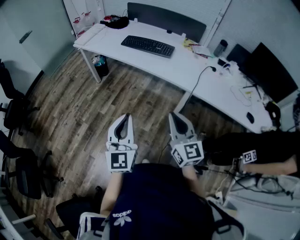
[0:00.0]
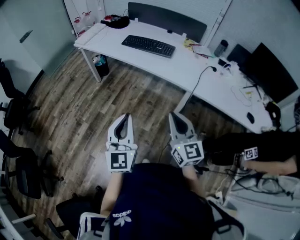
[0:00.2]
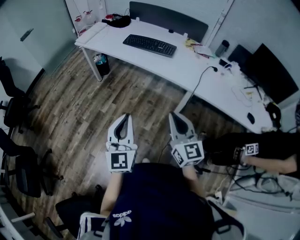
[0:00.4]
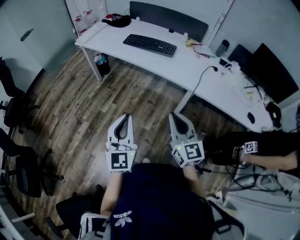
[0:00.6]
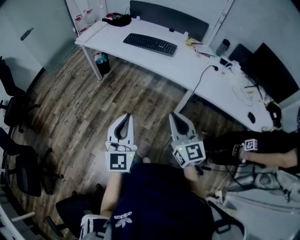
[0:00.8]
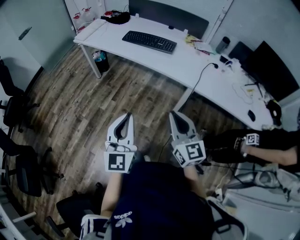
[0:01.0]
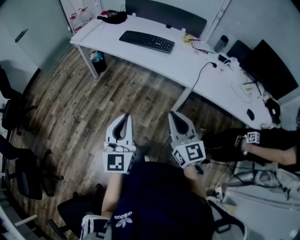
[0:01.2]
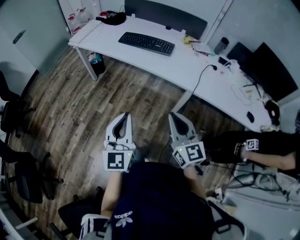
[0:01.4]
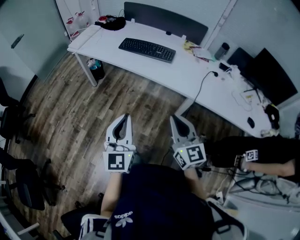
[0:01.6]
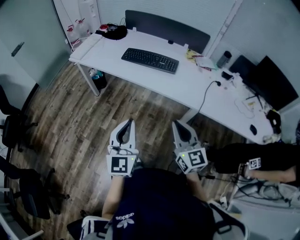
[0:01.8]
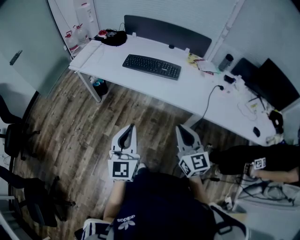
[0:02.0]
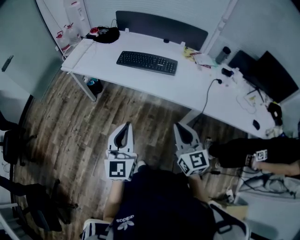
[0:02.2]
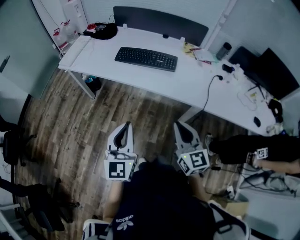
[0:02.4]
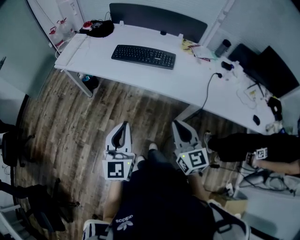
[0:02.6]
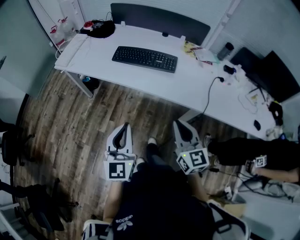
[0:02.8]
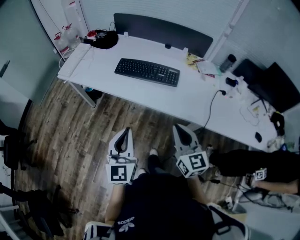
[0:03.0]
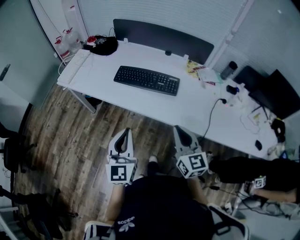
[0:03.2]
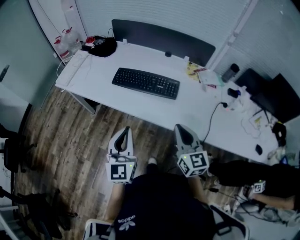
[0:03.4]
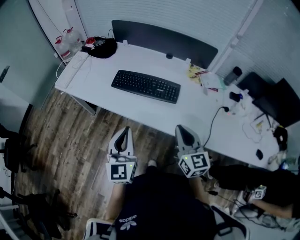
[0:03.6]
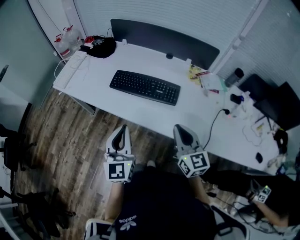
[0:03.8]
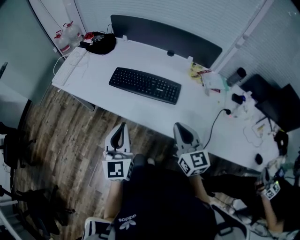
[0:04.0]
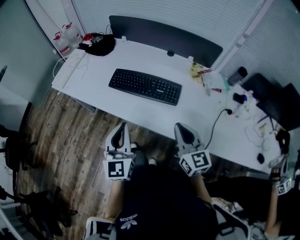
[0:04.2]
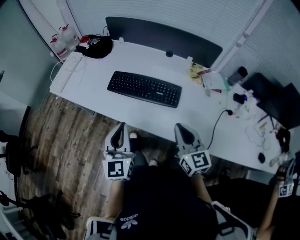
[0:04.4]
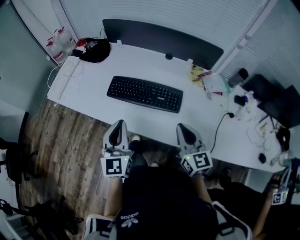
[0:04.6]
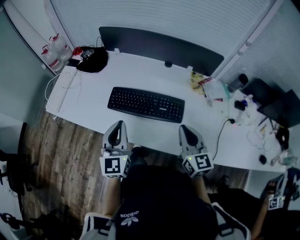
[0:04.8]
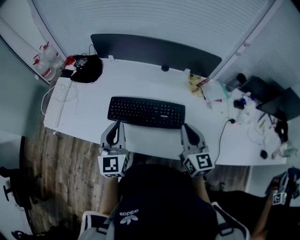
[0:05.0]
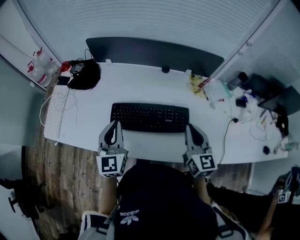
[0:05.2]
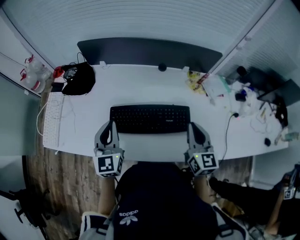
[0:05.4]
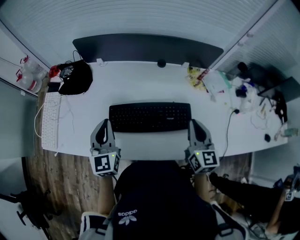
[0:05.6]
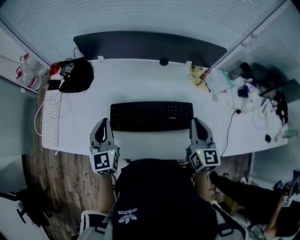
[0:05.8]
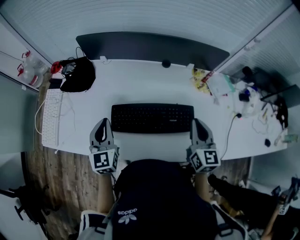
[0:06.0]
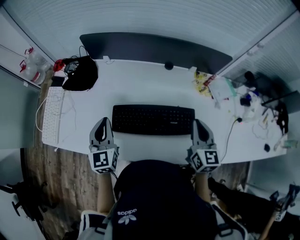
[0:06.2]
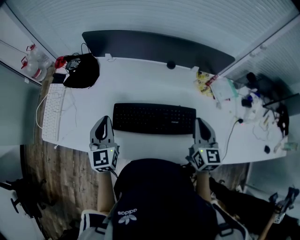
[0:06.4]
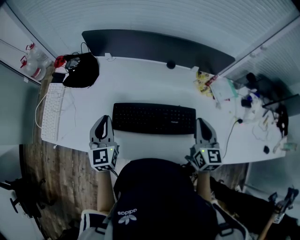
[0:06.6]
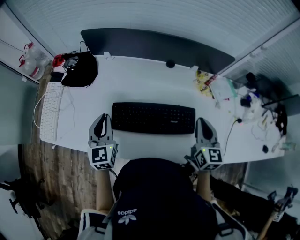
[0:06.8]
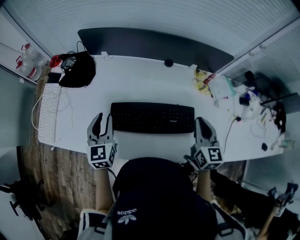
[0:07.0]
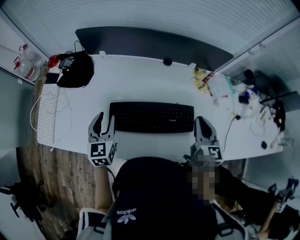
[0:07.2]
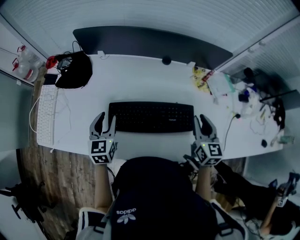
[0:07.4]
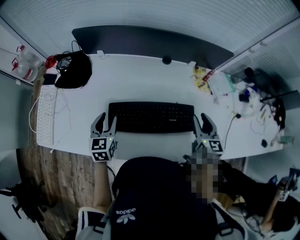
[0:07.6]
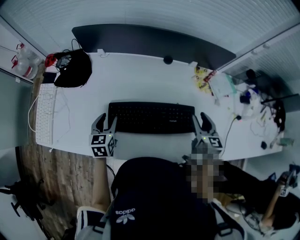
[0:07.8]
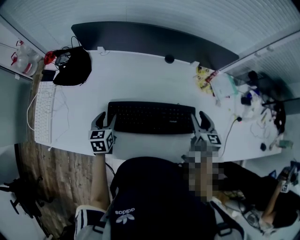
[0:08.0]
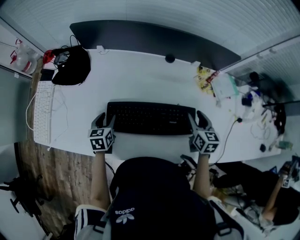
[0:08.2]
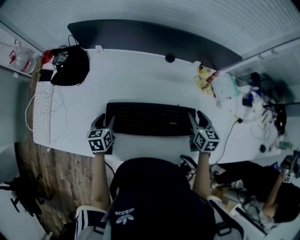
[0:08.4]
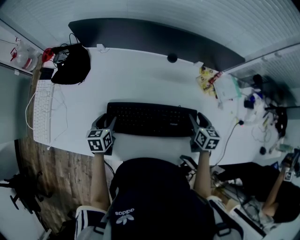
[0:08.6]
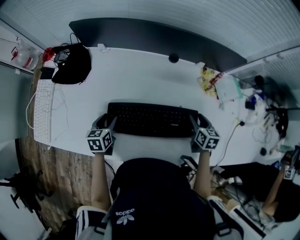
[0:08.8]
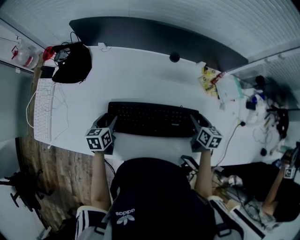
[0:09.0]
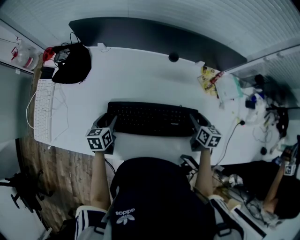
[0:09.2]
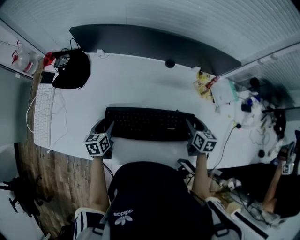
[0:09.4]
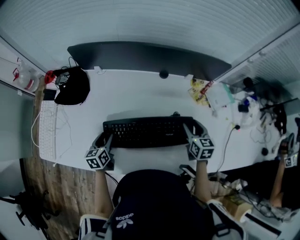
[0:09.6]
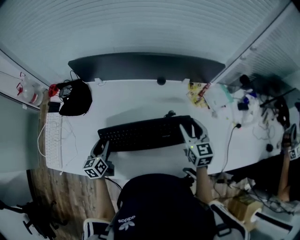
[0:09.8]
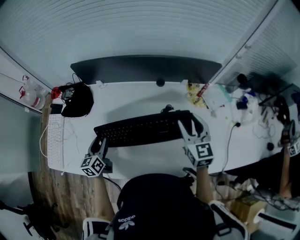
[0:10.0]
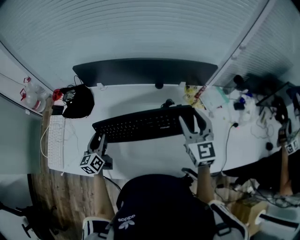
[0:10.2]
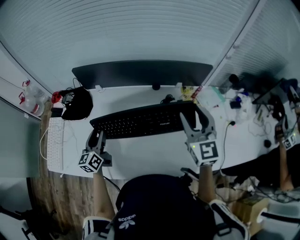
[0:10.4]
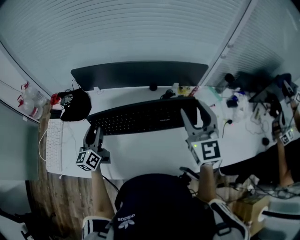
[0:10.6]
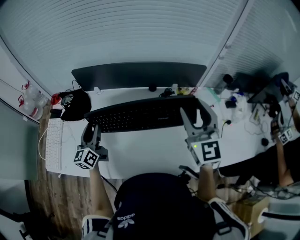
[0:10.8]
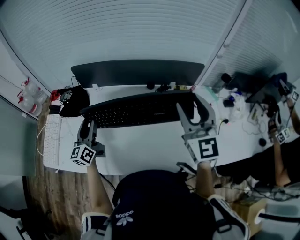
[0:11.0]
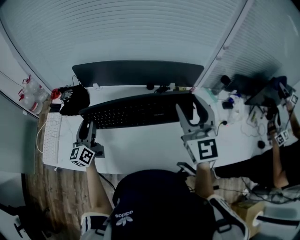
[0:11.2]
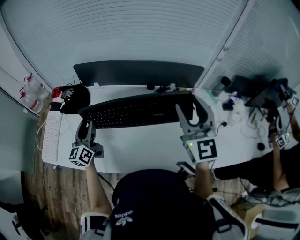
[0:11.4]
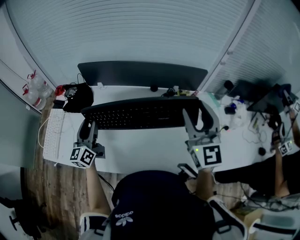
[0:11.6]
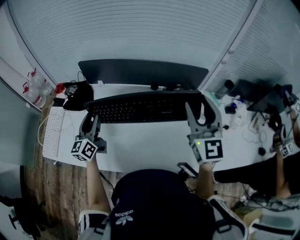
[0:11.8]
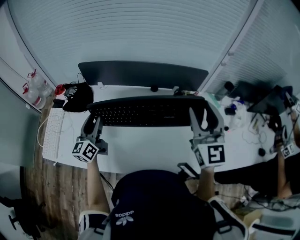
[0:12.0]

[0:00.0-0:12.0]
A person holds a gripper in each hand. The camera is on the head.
0:00.0 to 0:01.6: The two grippers go about 10 cm forward.
0:01.6 to 0:03.0: The grippers both shift forward by roughly 20 cm.
0:03.0 to 0:04.4: The two grippers go some 20 cm forward.
0:04.4 to 0:06.0: The left gripper heads forward and to the left, covering some 35 cm. The right gripper travels forward by some 20 cm, and swivels approximately 30 degrees.
0:06.0 to 0:07.6: The left gripper moves downward, some 10 cm, swivels some 20 degrees, and opens. Meanwhile the right gripper heads downward, covering about 5 cm, and opens up.
0:07.6 to 0:09.0: Both grippers move downward, roughly 10 cm. The right gripper turns by some 30 degrees. Meanwhile the left gripper turns by about 30 degrees.
0:09.0 to 0:10.4: The left gripper heads upward, covering roughly 15 cm, and tips its fingers upward by roughly 40 degrees, while the right gripper is displaced upward by roughly 30 cm, and tips its fingers upward by some 40 degrees.
0:10.4 to 0:12.0: Both grippers travel together upward, approximately 10 cm.

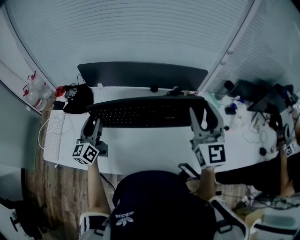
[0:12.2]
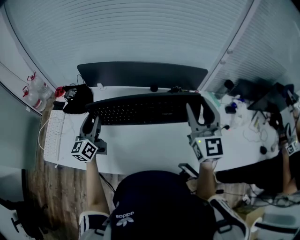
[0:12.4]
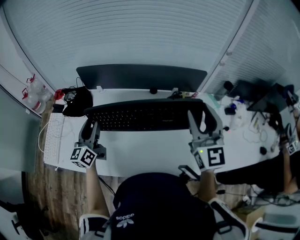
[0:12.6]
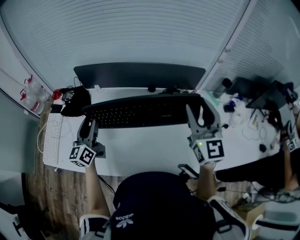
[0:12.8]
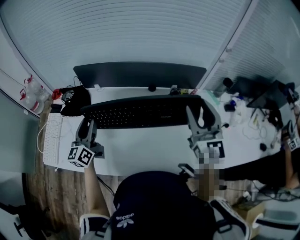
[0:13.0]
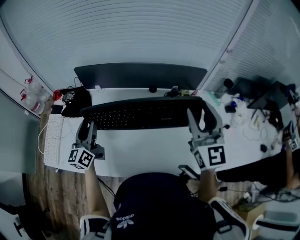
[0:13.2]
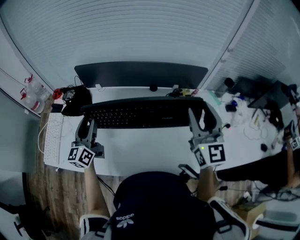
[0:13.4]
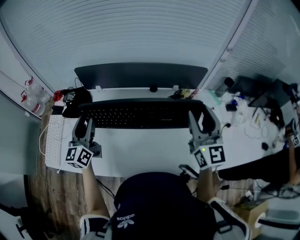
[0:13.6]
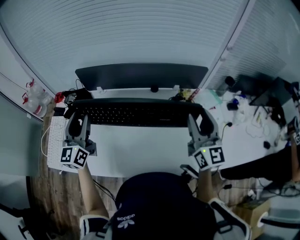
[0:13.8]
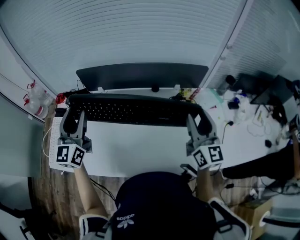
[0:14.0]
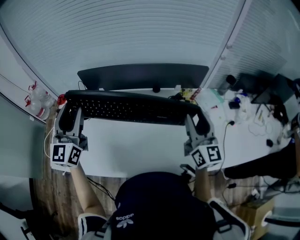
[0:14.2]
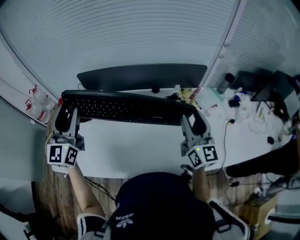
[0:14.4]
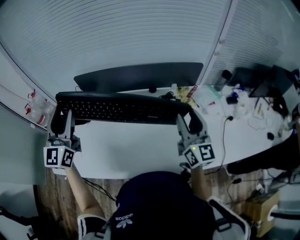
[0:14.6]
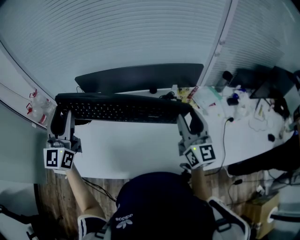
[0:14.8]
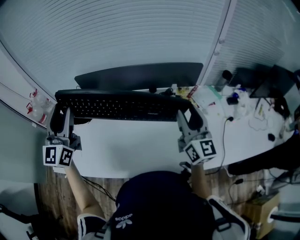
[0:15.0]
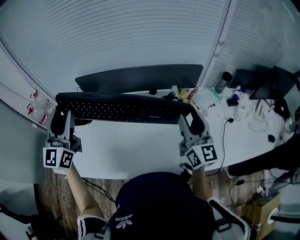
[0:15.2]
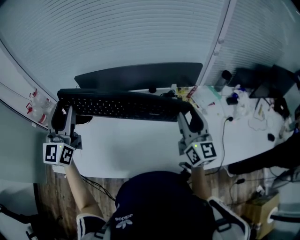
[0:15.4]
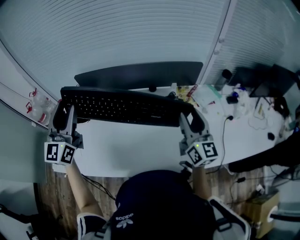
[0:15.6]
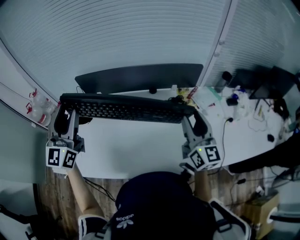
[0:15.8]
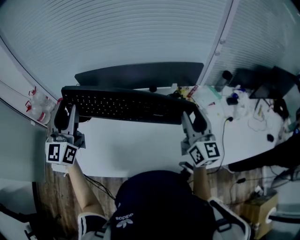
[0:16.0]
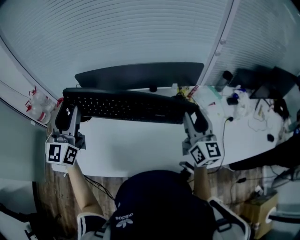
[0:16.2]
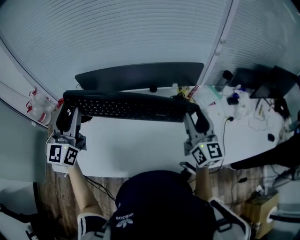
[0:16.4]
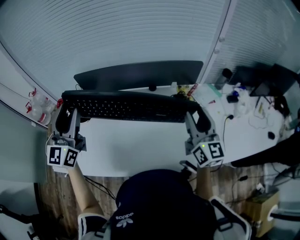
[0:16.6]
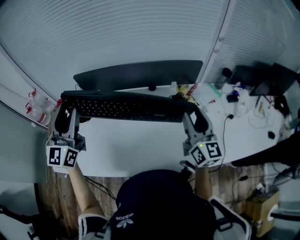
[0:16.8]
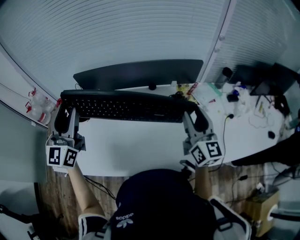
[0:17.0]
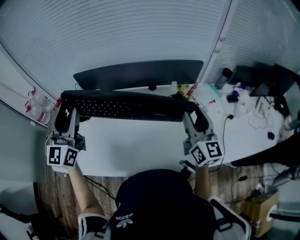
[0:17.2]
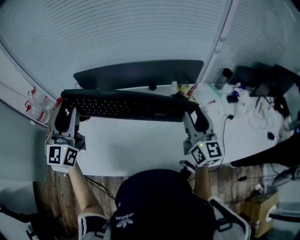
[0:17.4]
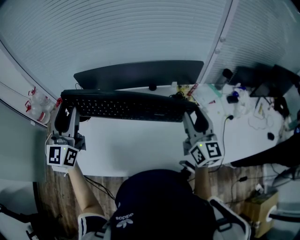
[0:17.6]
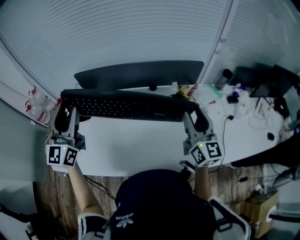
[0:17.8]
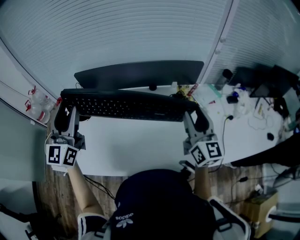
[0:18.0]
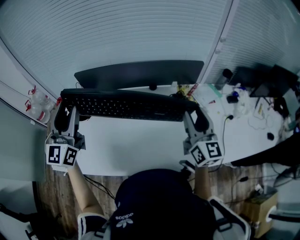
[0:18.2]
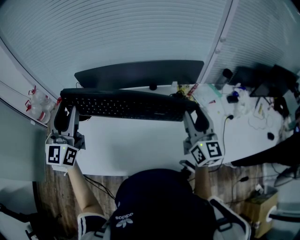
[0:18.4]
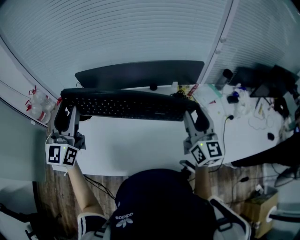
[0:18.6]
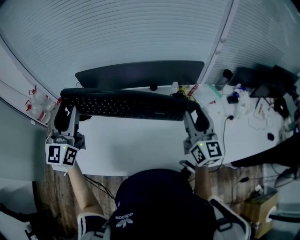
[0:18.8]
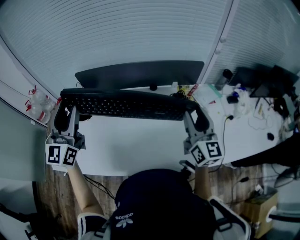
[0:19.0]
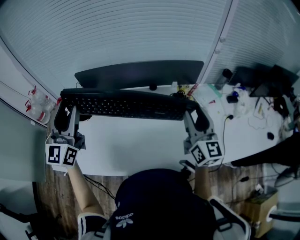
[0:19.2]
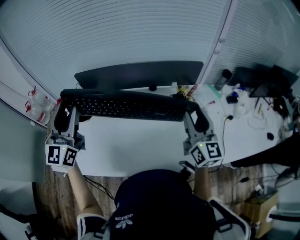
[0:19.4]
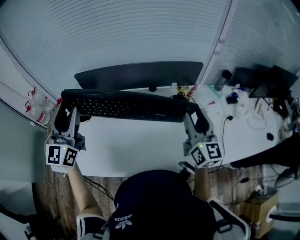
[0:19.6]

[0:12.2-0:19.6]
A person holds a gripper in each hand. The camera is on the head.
0:12.2 to 0:13.6: The left gripper ends up approximately 5 cm from where it was.
0:13.6 to 0:15.2: The left gripper shifts about 15 cm upward, and changes its angle by roughly 30 degrees.
0:15.2 to 0:16.6: There are only small adjustments of the grippers.
0:16.6 to 0:19.6: The two grippers keep their place.

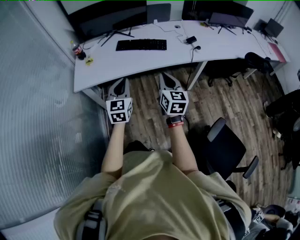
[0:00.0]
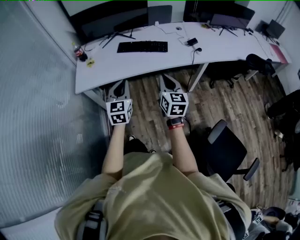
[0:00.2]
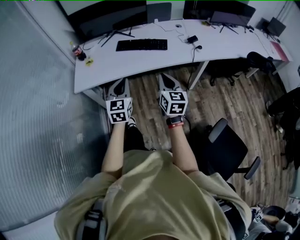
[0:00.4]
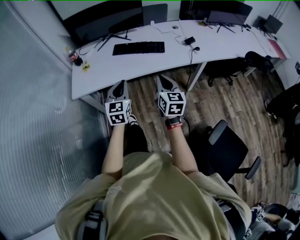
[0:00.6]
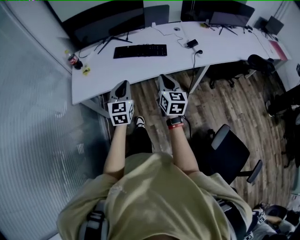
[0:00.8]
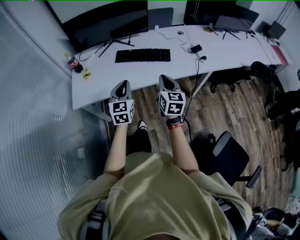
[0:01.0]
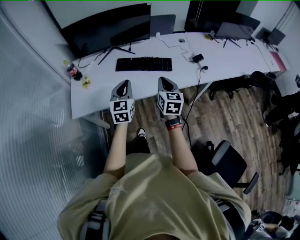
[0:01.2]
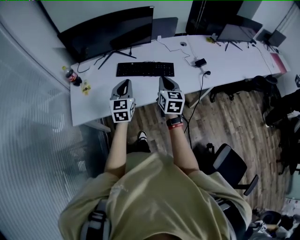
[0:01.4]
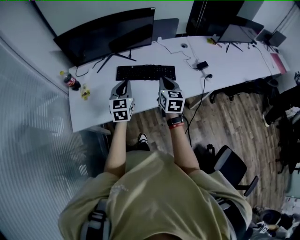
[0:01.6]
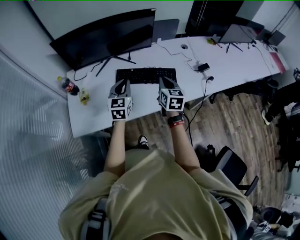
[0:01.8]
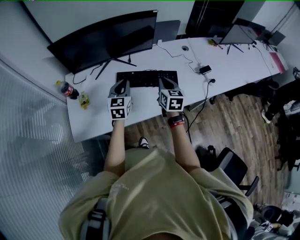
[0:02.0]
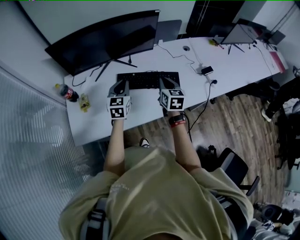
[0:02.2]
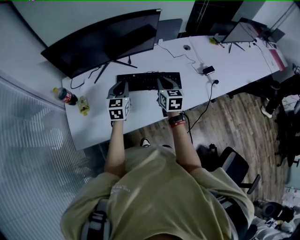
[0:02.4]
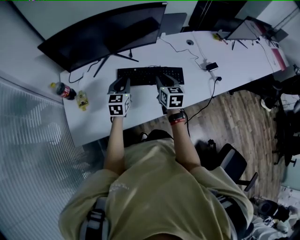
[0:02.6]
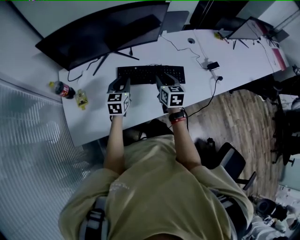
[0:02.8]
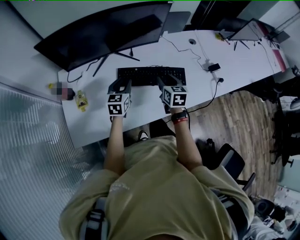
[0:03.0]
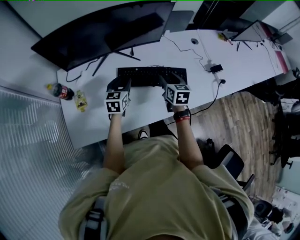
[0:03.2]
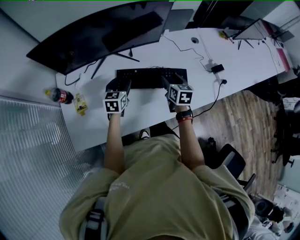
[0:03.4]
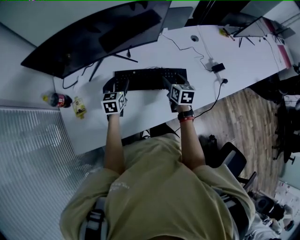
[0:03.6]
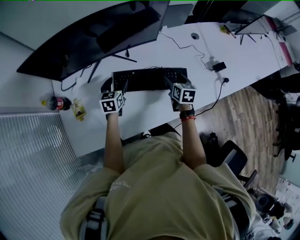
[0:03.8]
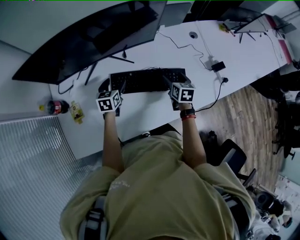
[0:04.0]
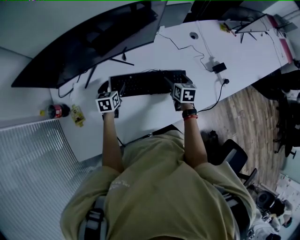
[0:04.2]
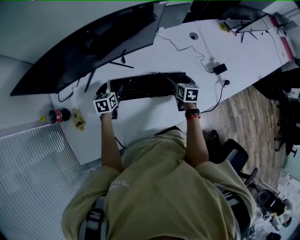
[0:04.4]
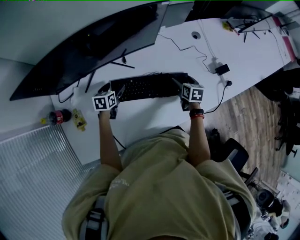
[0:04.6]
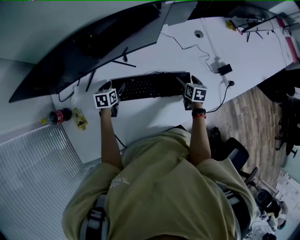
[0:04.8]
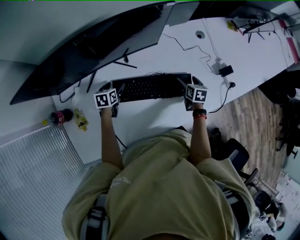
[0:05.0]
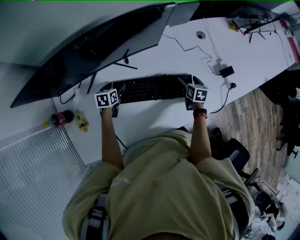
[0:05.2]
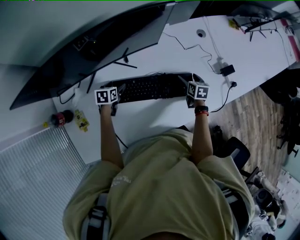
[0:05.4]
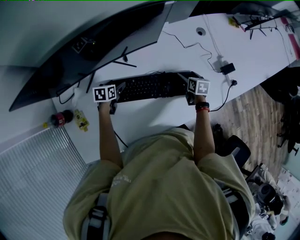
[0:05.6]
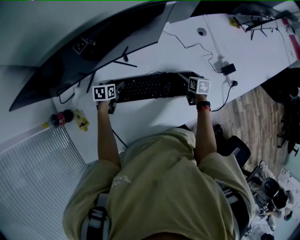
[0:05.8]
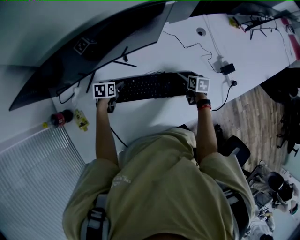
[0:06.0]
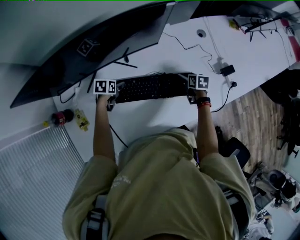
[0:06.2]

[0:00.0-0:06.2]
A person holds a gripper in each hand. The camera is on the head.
0:00.0 to 0:01.6: The grippers both shift forward by some 35 cm.
0:01.6 to 0:03.2: The right gripper is displaced forward and downward by some 20 cm, and opens. The left gripper moves forward, downward and to the left, about 25 cm, and opens its fingers.
0:03.2 to 0:04.6: The left gripper goes approximately 20 cm downward and forward, swivels some 20 degrees, and opens, while the right gripper moves downward, to the right and forward, roughly 20 cm, and opens.
0:04.6 to 0:06.2: The right gripper moves some 5 cm; the left gripper moves approximately 5 cm, and rotates some 20 degrees.
